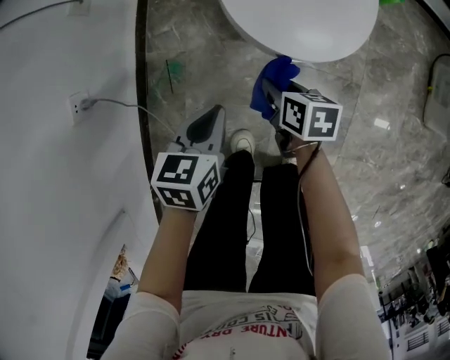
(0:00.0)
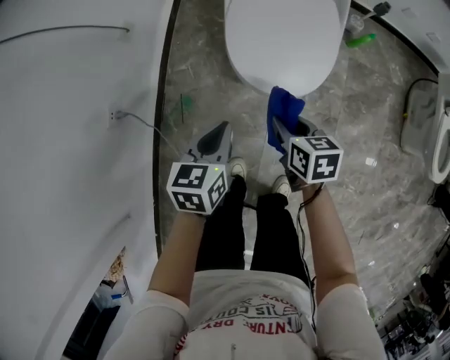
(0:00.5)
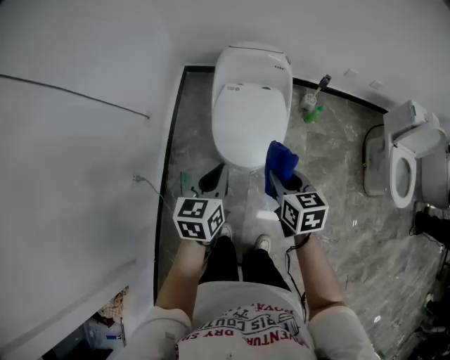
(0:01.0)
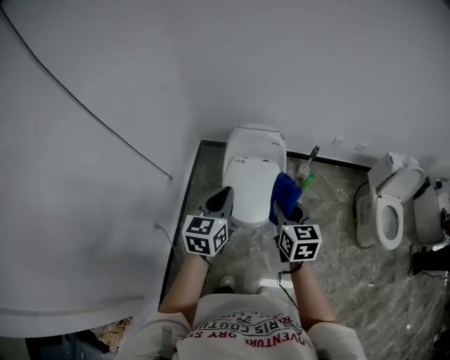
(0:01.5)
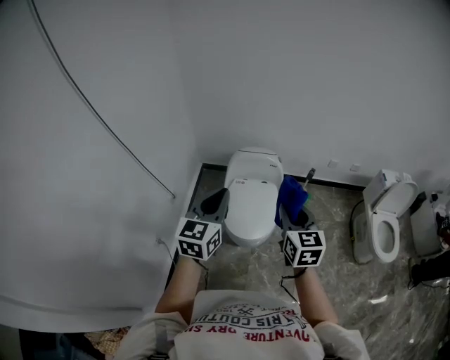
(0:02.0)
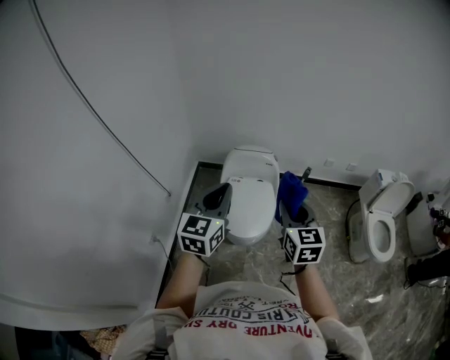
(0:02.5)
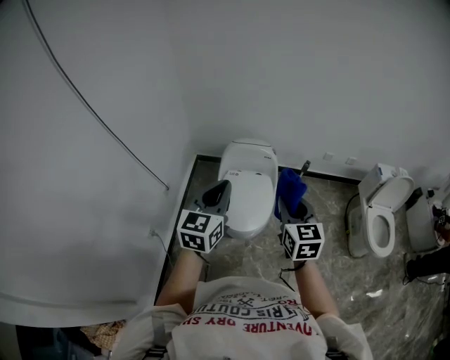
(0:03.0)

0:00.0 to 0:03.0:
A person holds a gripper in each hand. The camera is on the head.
0:00.0 to 0:01.5: Both grippers move upward, roughly 60 cm. The right gripper tilts its fingers roughly 30 degrees upward. Meanwhile the left gripper tips its fingers upward by some 30 degrees.
0:01.5 to 0:03.0: The grippers both shift upward by some 10 cm.

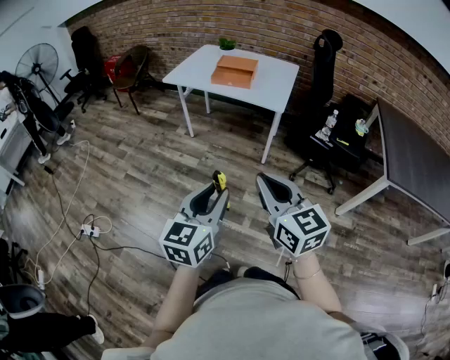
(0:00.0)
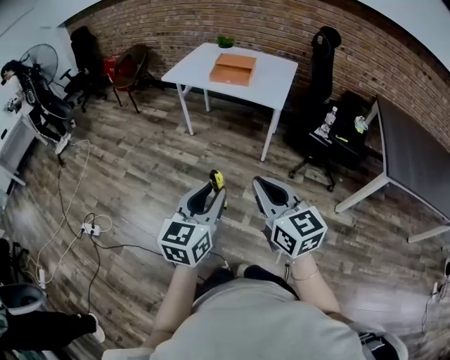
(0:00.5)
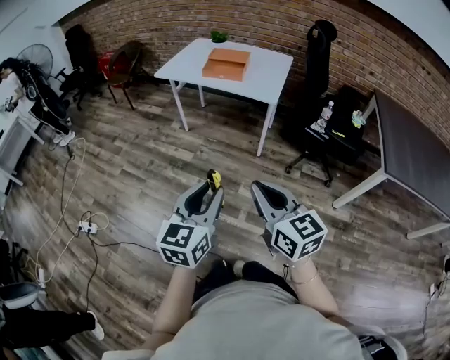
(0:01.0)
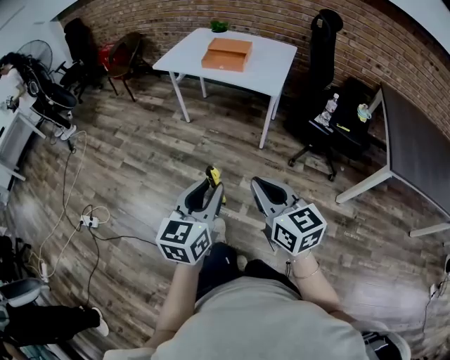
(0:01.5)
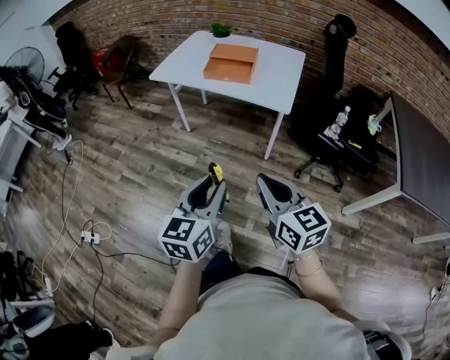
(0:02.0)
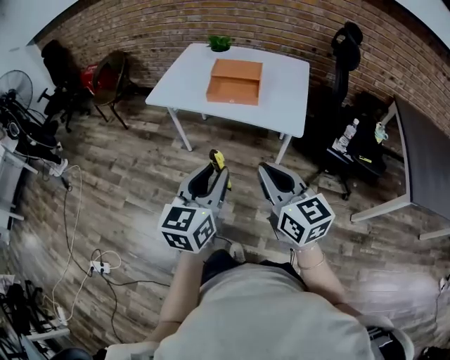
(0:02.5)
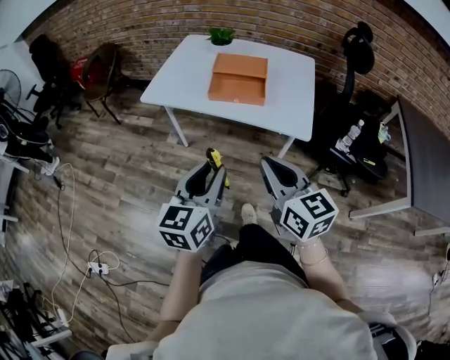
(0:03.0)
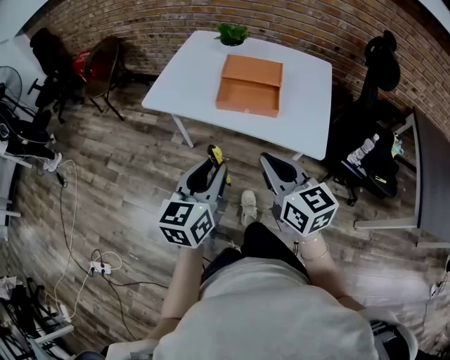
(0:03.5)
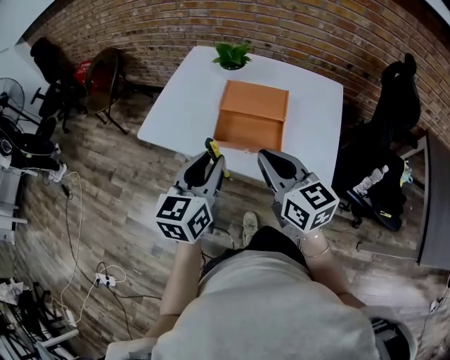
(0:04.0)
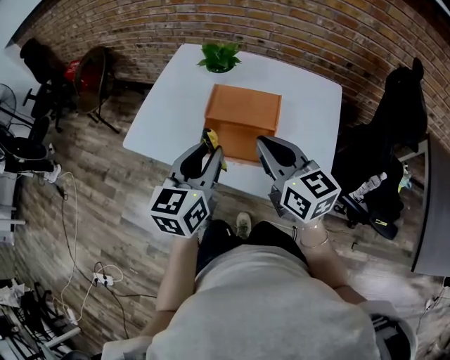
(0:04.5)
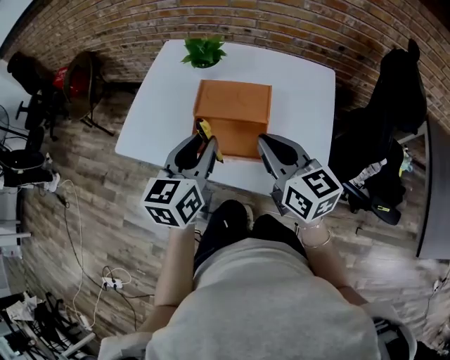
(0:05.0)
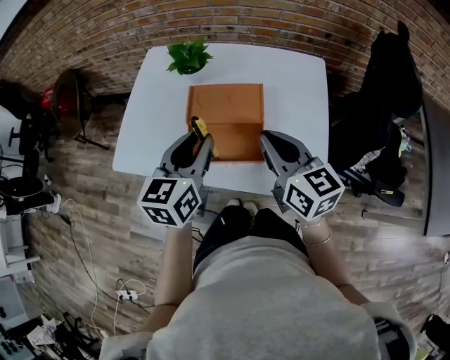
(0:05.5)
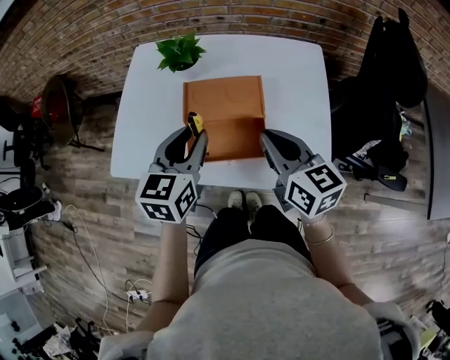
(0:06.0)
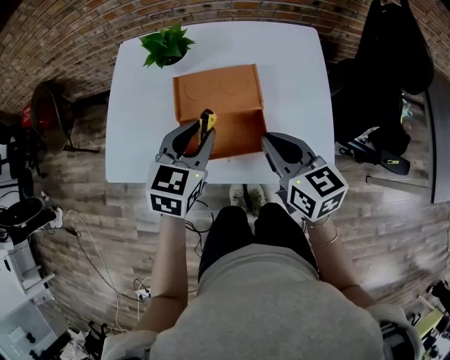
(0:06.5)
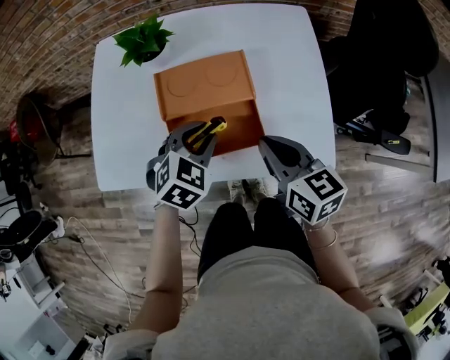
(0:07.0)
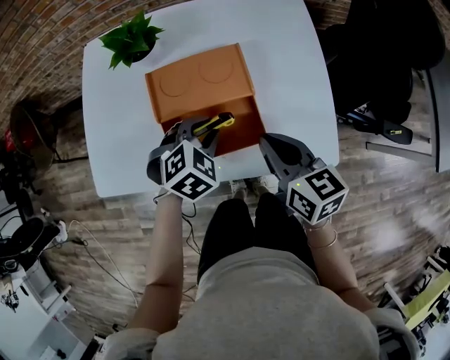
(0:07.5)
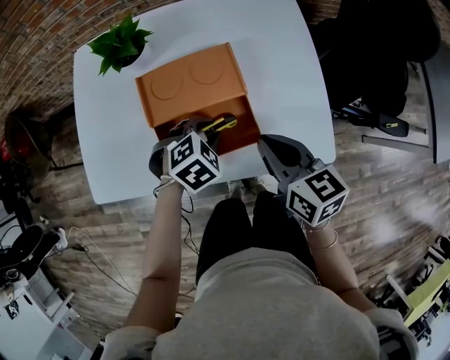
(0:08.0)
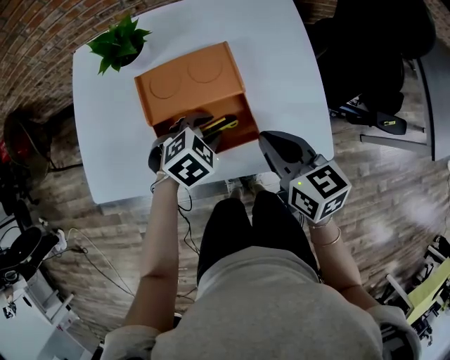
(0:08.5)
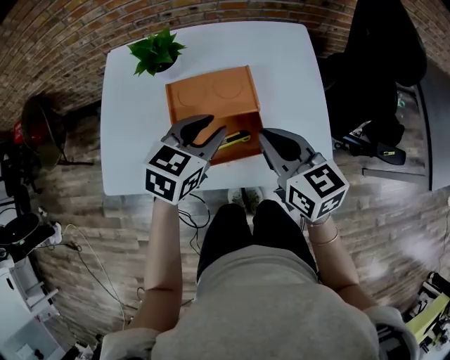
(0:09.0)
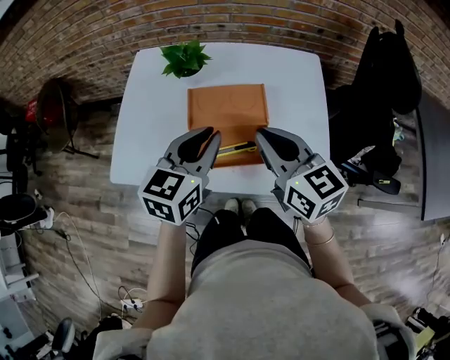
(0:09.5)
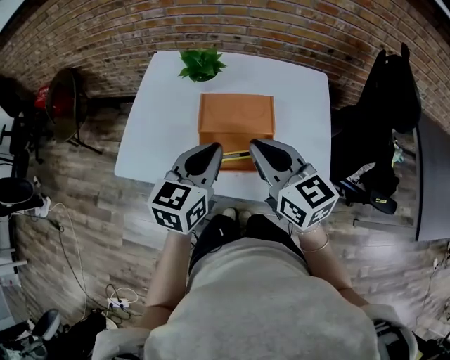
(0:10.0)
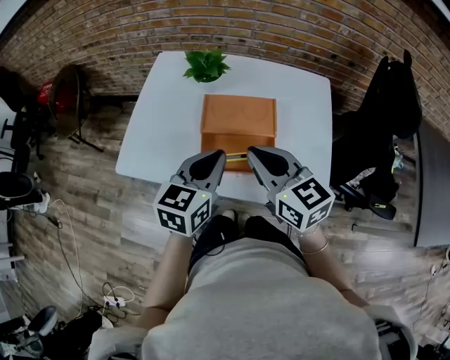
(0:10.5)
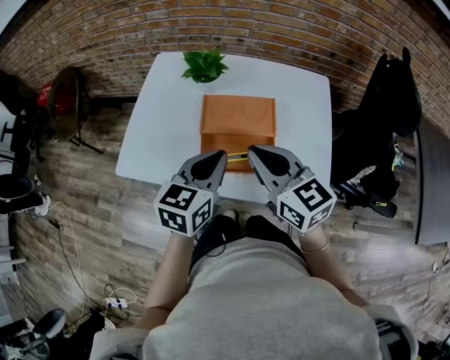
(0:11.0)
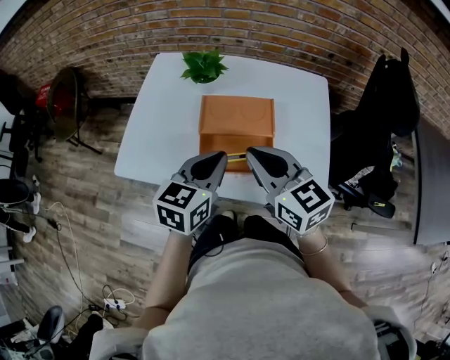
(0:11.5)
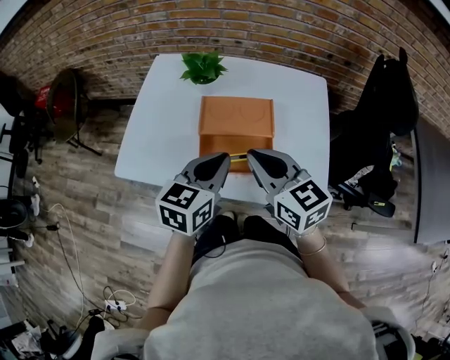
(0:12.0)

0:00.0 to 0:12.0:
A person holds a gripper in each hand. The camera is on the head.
0:00.0 to 0:02.0: The right gripper heads forward and downward, covering some 15 cm; the left gripper goes roughly 15 cm forward.
0:02.0 to 0:04.0: The two grippers travel together, forward, about 50 cm.
0:04.0 to 0:06.0: The left gripper is displaced forward by some 20 cm; the right gripper goes about 15 cm forward and to the right.
0:06.0 to 0:08.0: The left gripper moves downward, about 20 cm, and tilts its fingers roughly 40 degrees downward. The right gripper moves downward, roughly 10 cm.
0:08.0 to 0:10.0: The left gripper travels upward by roughly 25 cm, angles its fingers upward, by some 50 degrees, and closes up. The right gripper moves upward, some 15 cm, and changes its angle by approximately 30 degrees.
0:10.0 to 0:12.0: There are only small adjustments of the grippers.

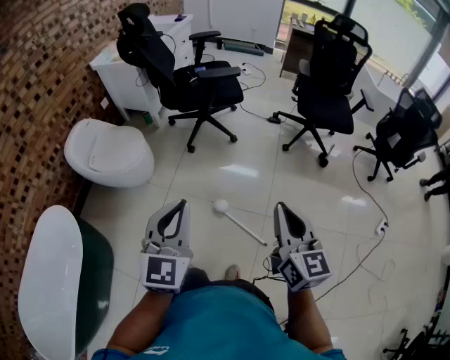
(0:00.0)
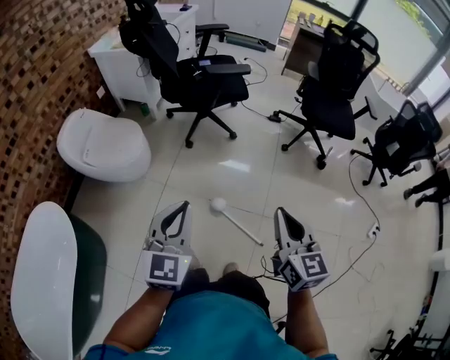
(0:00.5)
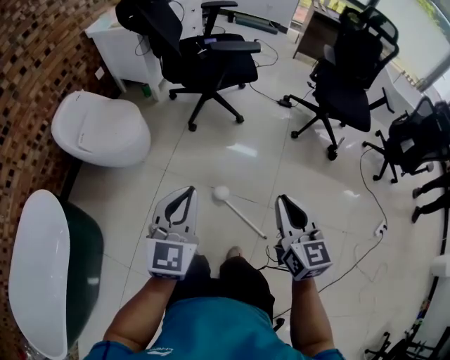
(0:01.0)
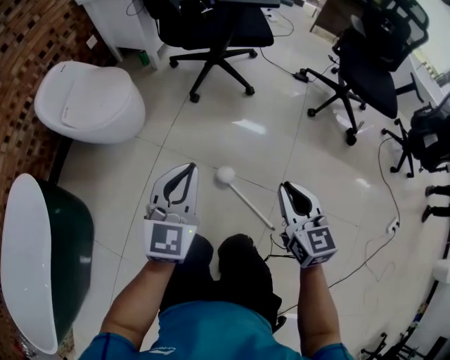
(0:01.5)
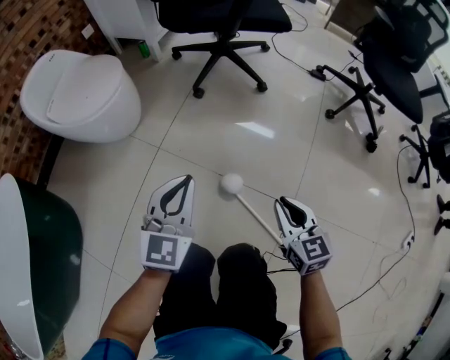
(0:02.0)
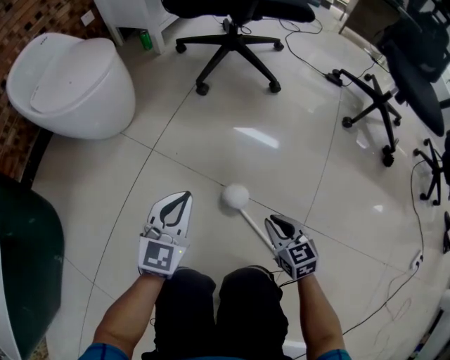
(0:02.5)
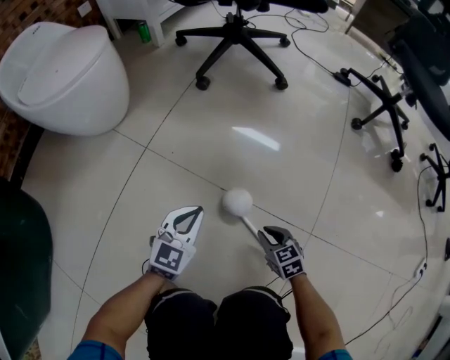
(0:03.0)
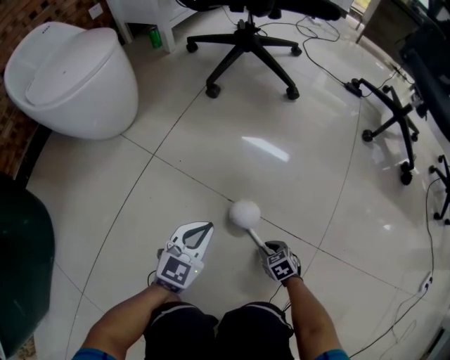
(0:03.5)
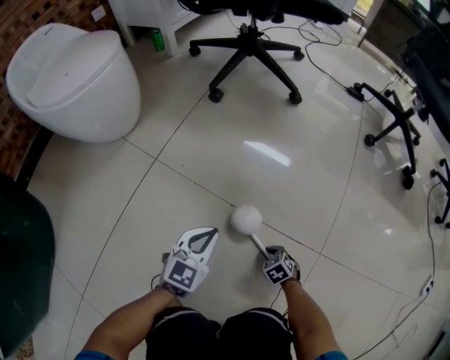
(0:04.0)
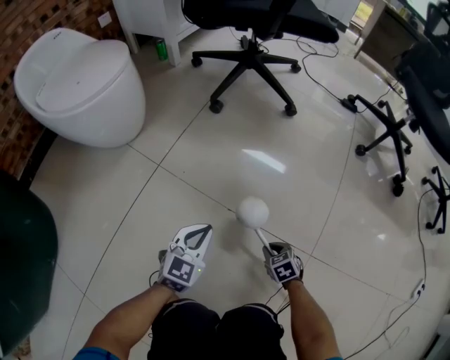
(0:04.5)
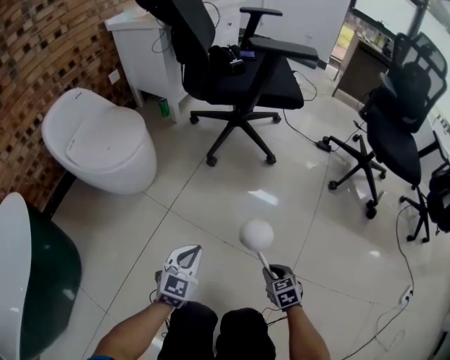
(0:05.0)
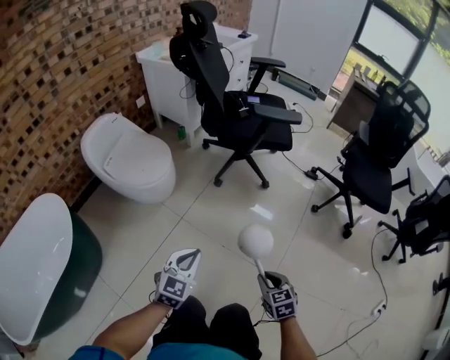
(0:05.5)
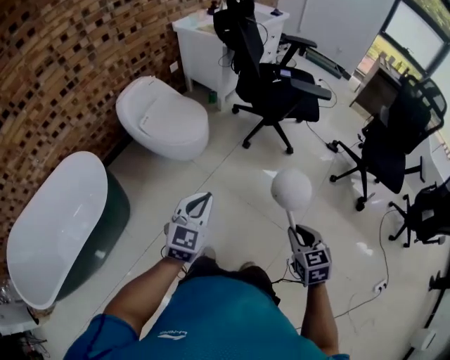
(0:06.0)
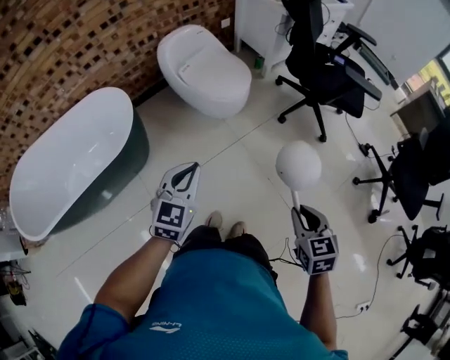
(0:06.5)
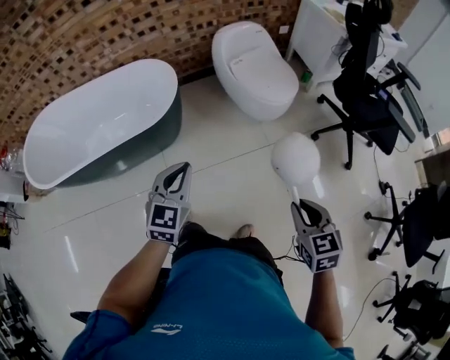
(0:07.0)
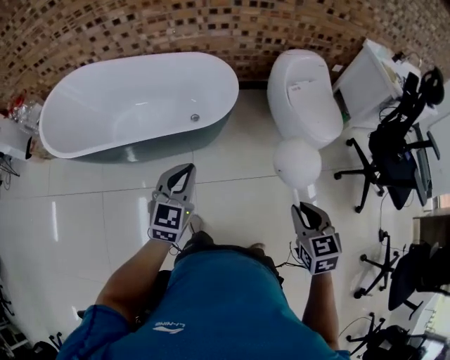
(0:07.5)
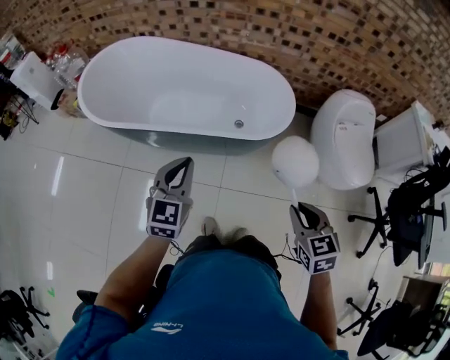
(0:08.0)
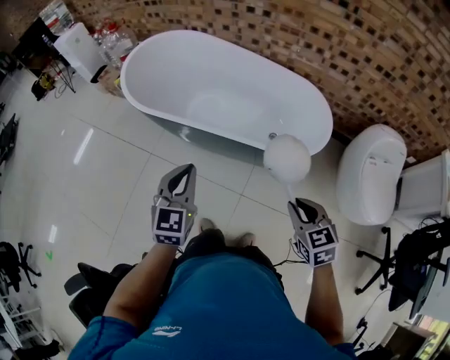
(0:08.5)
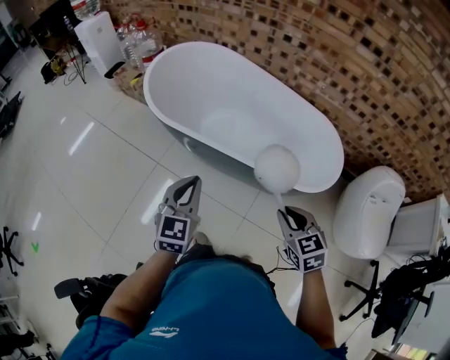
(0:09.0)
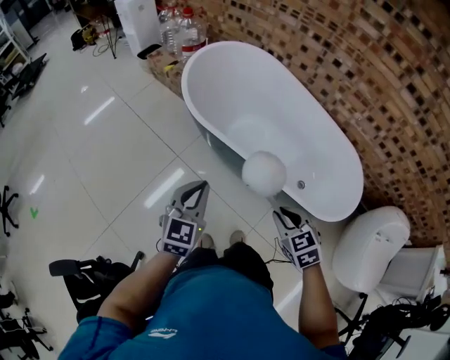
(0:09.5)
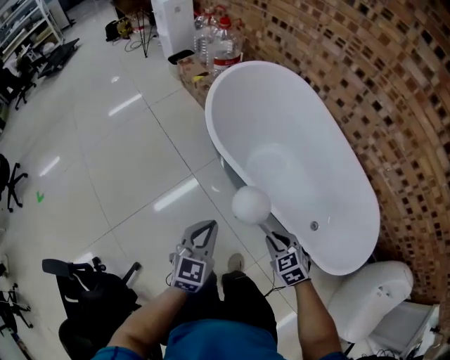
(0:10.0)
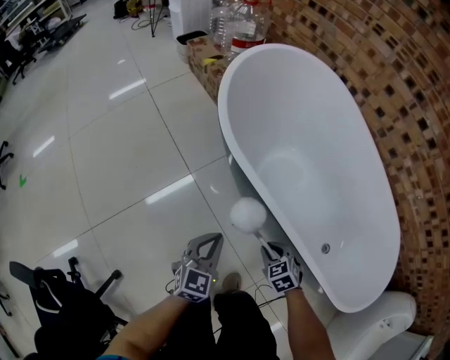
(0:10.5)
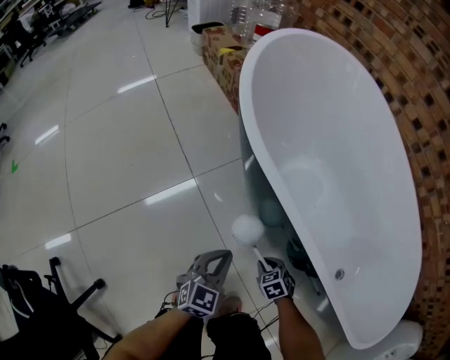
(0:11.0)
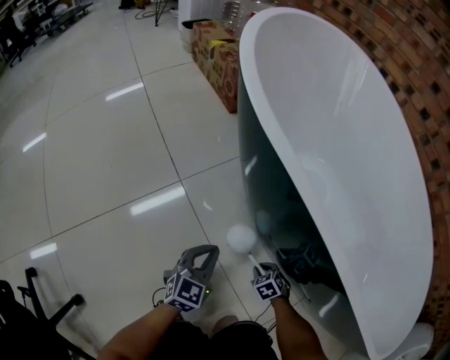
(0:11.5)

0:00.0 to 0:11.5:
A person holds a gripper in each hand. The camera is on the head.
0:00.0 to 0:02.0: The right gripper shifts some 60 cm downward, and swivels about 30 degrees, while the left gripper is displaced downward and forward by roughly 50 cm.
0:02.0 to 0:04.0: Both grippers move downward, approximately 50 cm. The right gripper tilts its fingers some 40 degrees downward.
0:04.0 to 0:06.0: The two grippers go some 90 cm upward. The left gripper swivels roughly 20 degrees. The right gripper turns by roughly 30 degrees.
0:06.0 to 0:07.5: The pair of grippers is taken some 50 cm. The left gripper changes its angle by about 50 degrees. The right gripper rotates some 50 degrees.
0:07.5 to 0:09.5: Both grippers are carried roughly 50 cm. The right gripper turns by some 60 degrees. Meanwhile the left gripper changes its angle by approximately 50 degrees.
0:09.5 to 0:11.5: The grippers both shift downward by some 70 cm. The right gripper changes its angle by some 30 degrees.
